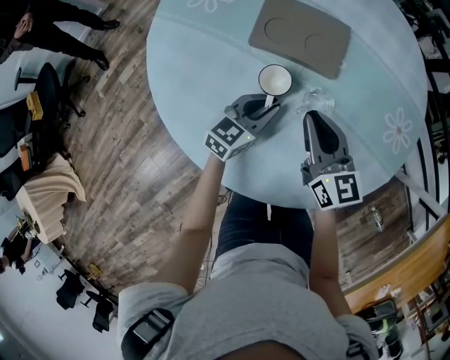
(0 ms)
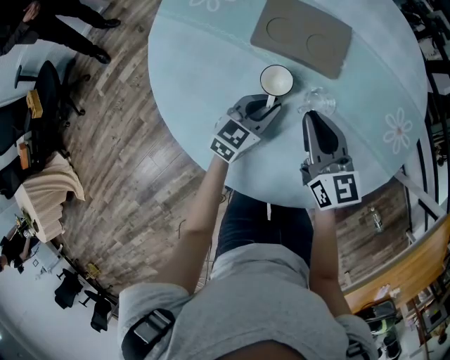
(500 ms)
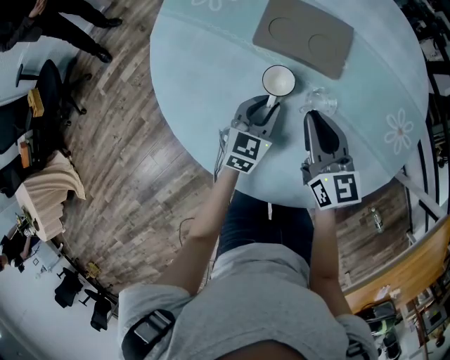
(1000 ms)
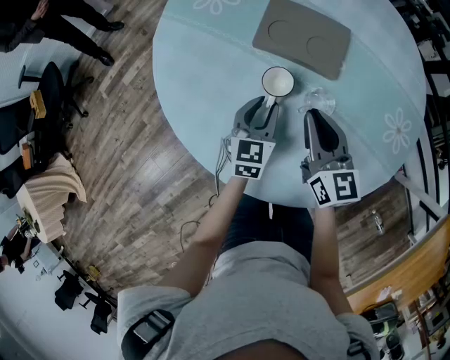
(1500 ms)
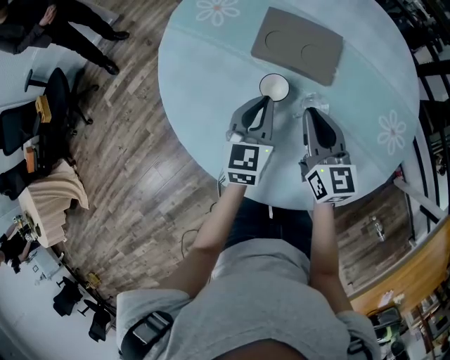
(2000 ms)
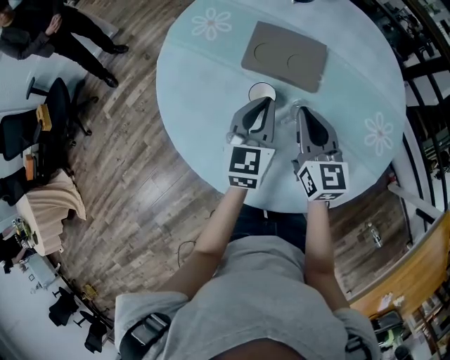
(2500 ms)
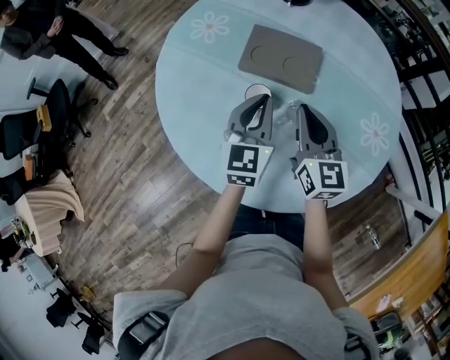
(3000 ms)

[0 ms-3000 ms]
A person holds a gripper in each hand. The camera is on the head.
0 ms to 1500 ms: The left gripper turns by about 30 degrees.
1500 ms to 3000 ms: The right gripper heads upward, covering some 5 cm; the left gripper travels upward by roughly 15 cm, and closes.

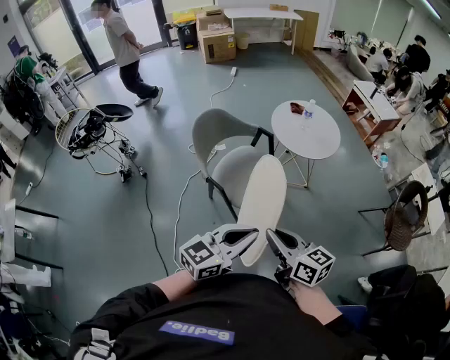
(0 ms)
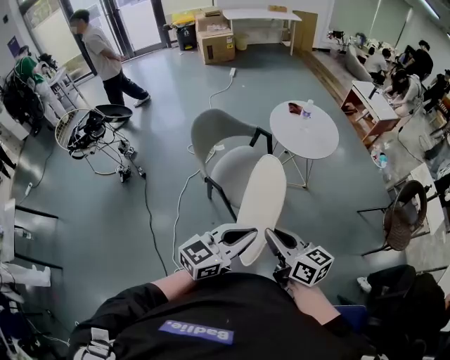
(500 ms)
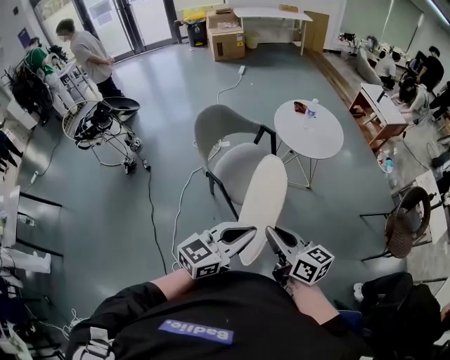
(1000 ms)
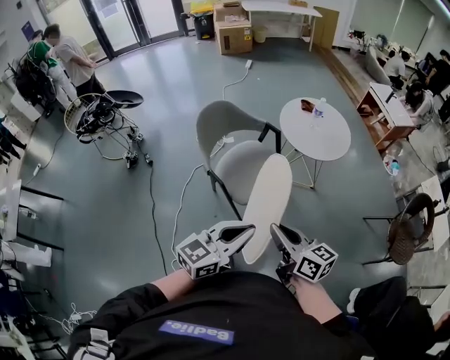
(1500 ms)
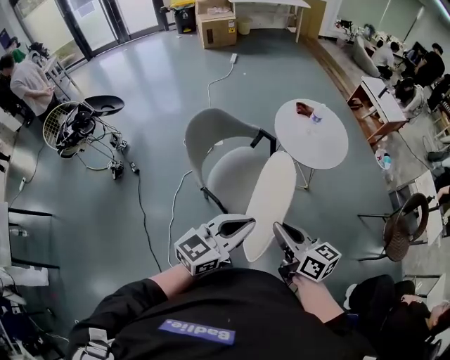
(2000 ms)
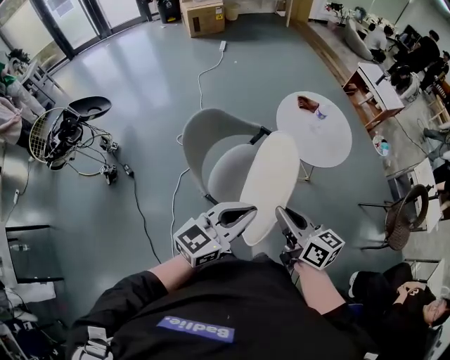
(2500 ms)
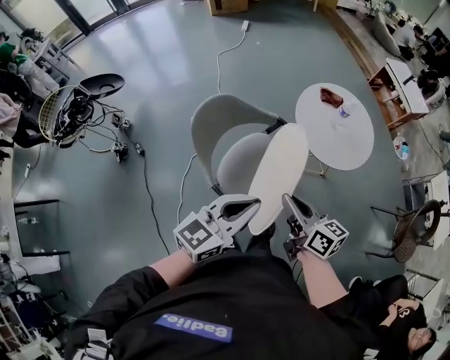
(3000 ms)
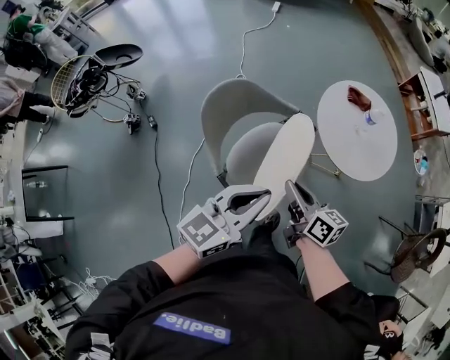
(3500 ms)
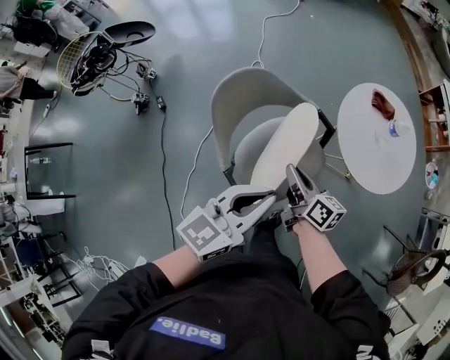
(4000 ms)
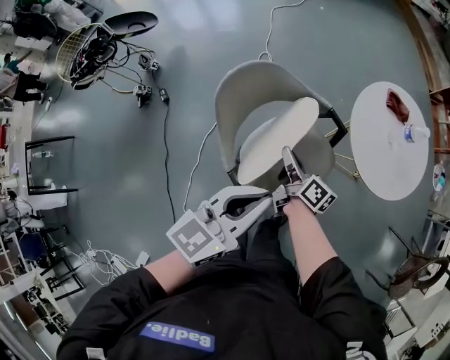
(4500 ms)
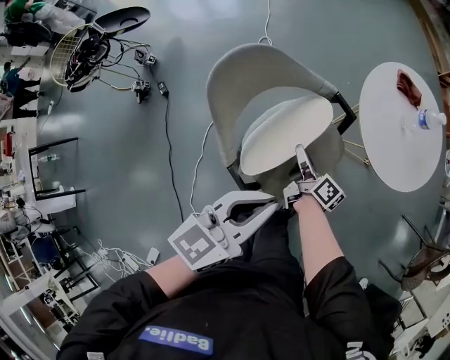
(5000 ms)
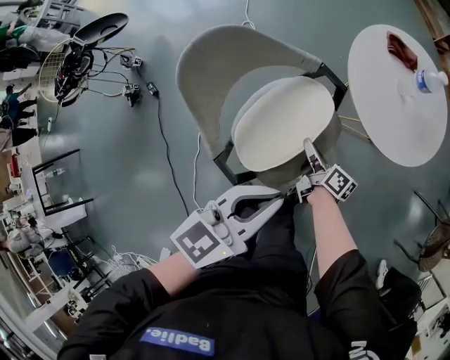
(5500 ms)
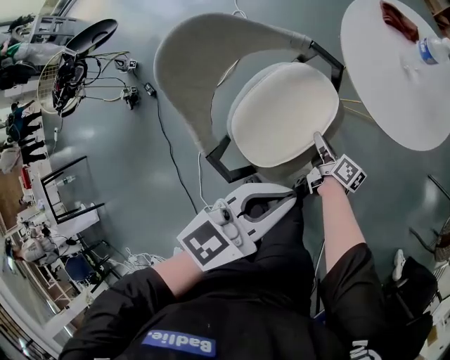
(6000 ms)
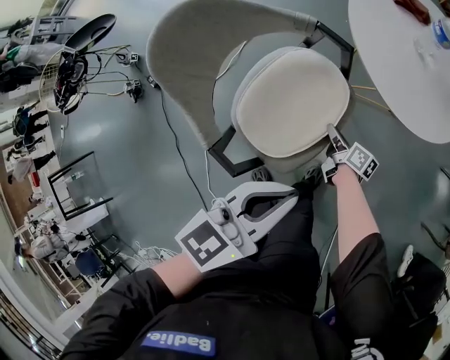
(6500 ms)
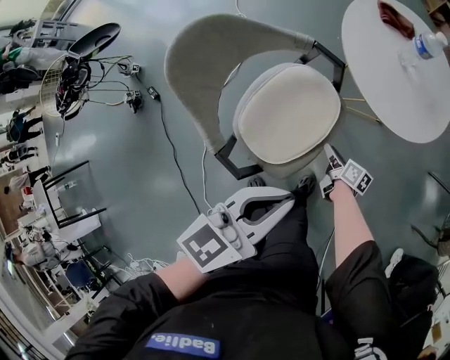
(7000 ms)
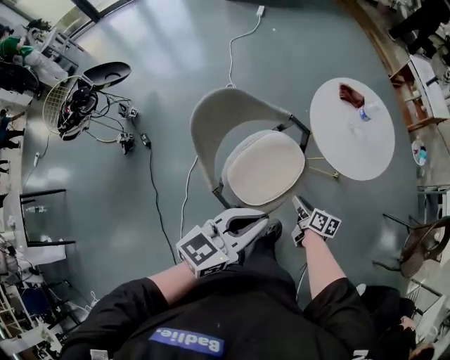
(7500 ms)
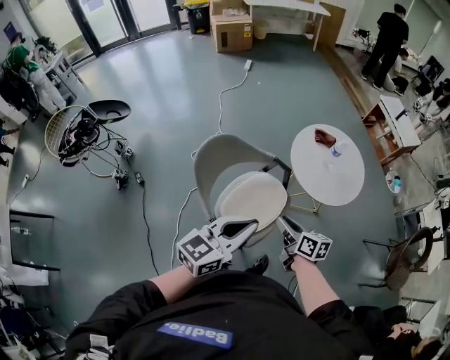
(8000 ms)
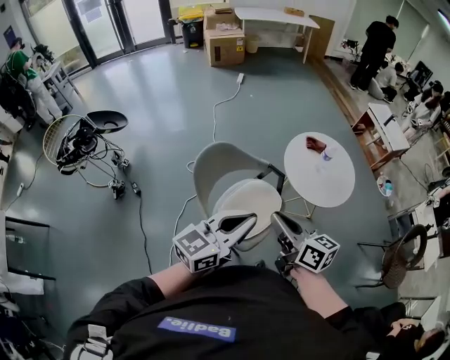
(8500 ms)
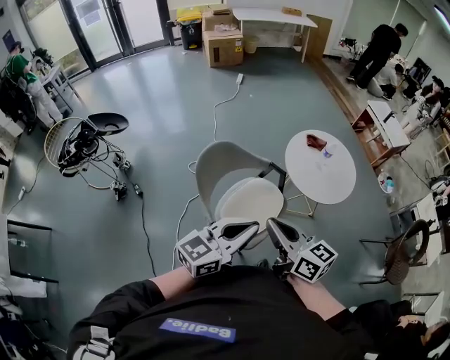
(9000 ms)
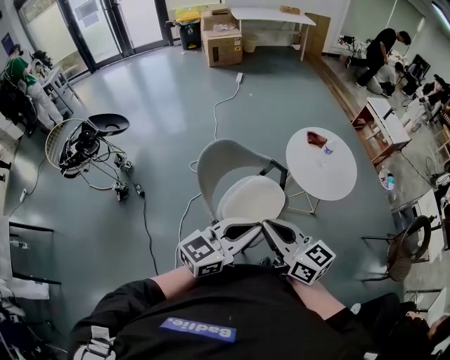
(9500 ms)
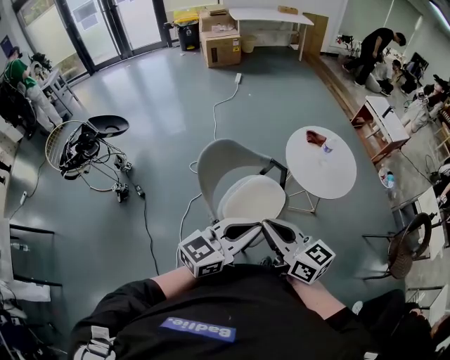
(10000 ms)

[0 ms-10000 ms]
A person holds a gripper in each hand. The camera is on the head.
0 ms to 2000 ms: Both grippers travel together forward, roughly 15 cm.
2000 ms to 4000 ms: The right gripper is displaced forward and downward by roughly 30 cm, while the left gripper goes some 20 cm forward.
4000 ms to 6000 ms: The right gripper shifts about 30 cm downward and to the right, and rotates roughly 30 degrees, while the left gripper heads downward and to the right, covering approximately 15 cm.
6000 ms to 8000 ms: The right gripper goes about 30 cm upward, and changes its angle by about 30 degrees. Meanwhile the left gripper heads upward and to the left, covering approximately 20 cm.
8000 ms to 10000 ms: The right gripper goes some 25 cm upward, backward and to the left, rotates approximately 30 degrees, and closes. The left gripper goes about 5 cm backward.

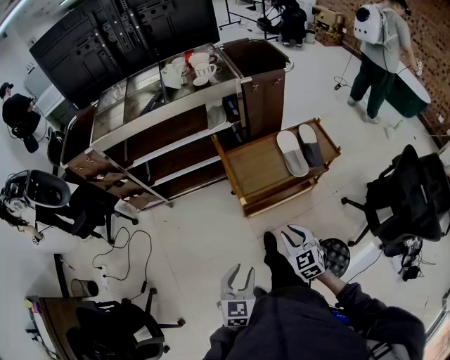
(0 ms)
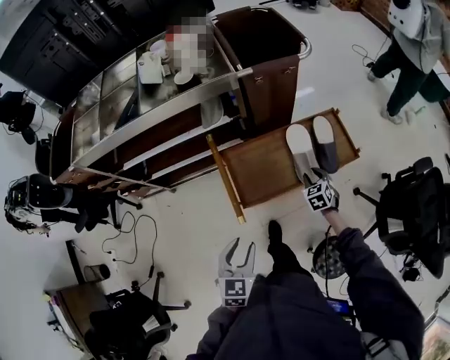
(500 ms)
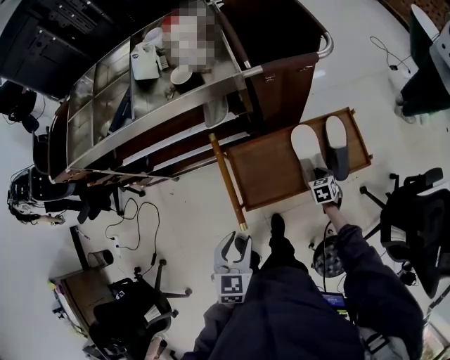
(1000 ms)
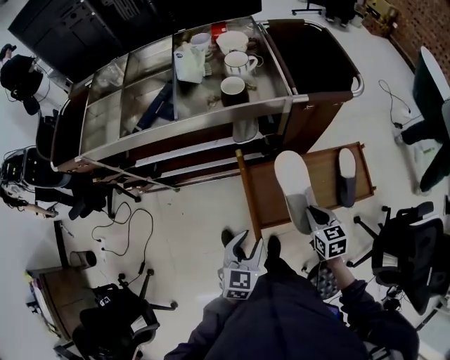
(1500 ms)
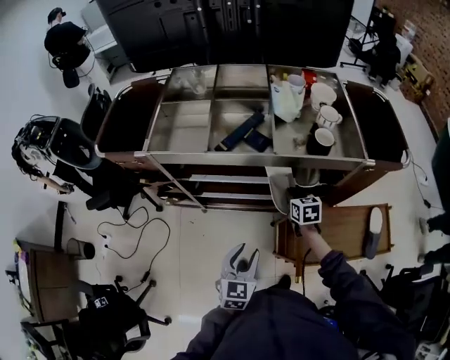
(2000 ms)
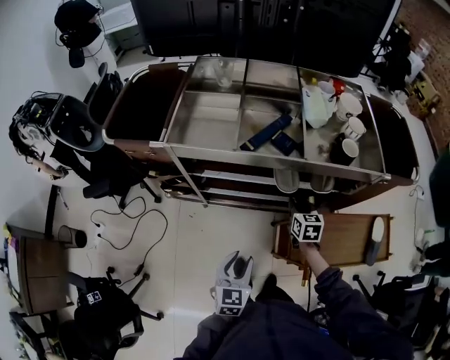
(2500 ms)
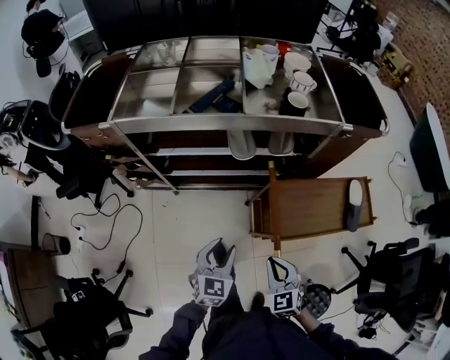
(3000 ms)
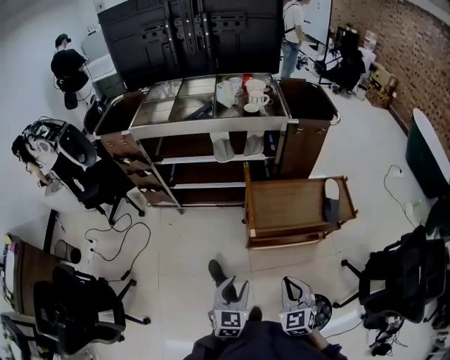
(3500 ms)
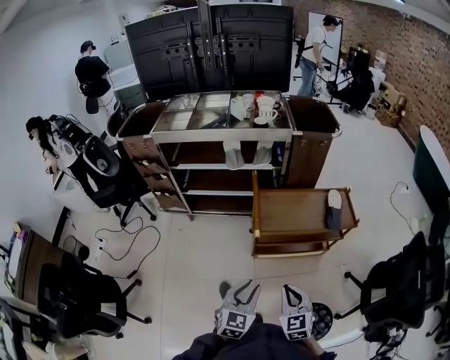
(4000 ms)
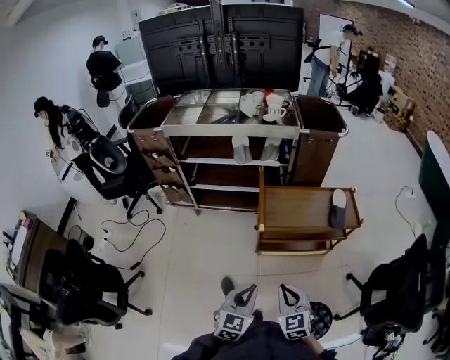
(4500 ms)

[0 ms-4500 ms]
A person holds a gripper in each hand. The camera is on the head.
0 ms to 2000 ms: Both grippers are carried forward and to the left, about 50 cm. The right gripper rotates roughly 20 degrees.
2000 ms to 4500 ms: Both grippers are carried backward, roughly 60 cm. The right gripper changes its angle by roughly 30 degrees, while the left gripper closes up.

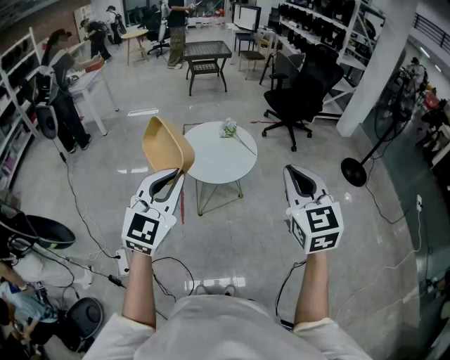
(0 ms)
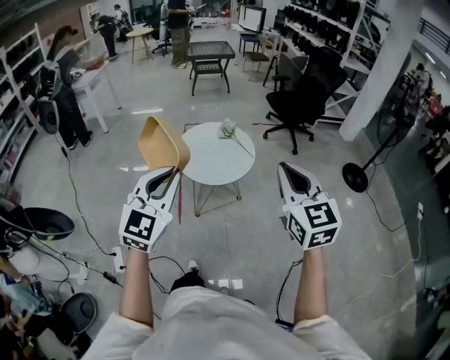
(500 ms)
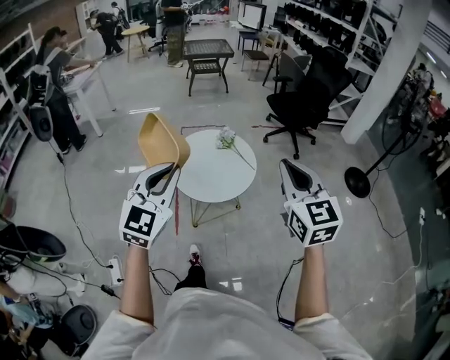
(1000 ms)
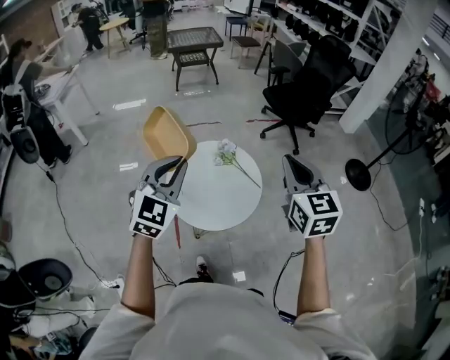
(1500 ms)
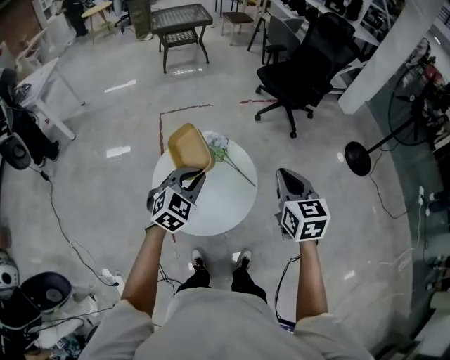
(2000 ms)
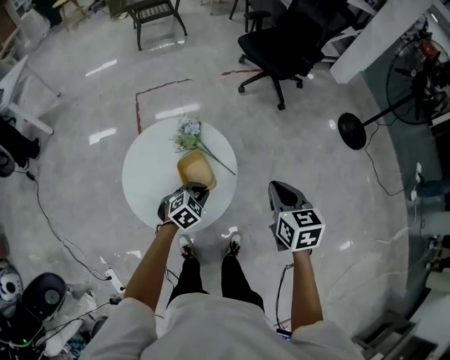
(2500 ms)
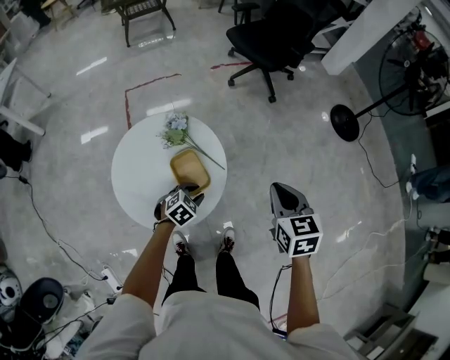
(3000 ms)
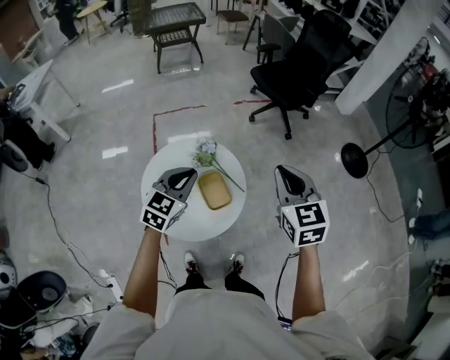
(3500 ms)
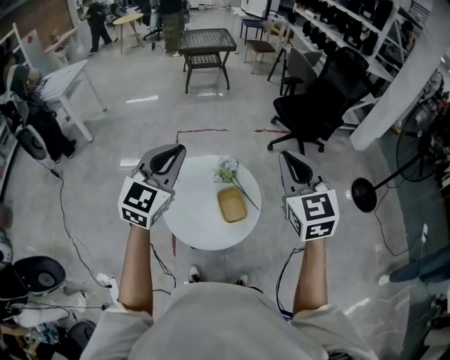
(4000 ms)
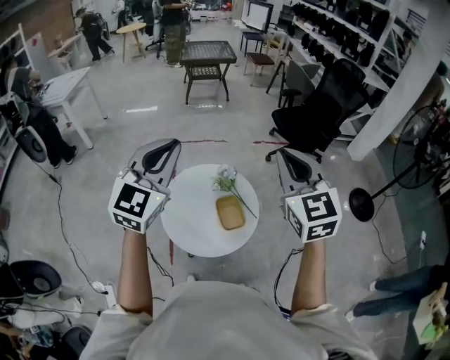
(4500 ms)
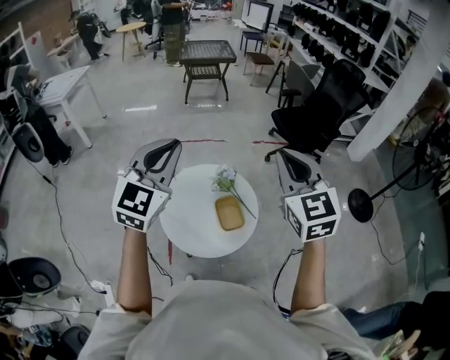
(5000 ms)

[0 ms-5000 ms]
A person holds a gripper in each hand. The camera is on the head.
0 ms to 2500 ms: Both grippers are carried forward, roughly 50 cm. The right gripper travels downward by roughly 30 cm, and changes its angle by roughly 40 degrees; the left gripper travels downward by roughly 50 cm, and tilts its fingers about 50 degrees downward.
2500 ms to 5000 ms: The left gripper shifts approximately 50 cm upward, tips its fingers upward by approximately 50 degrees, and opens, then closes once more; the right gripper travels upward by roughly 30 cm, and swivels about 40 degrees.

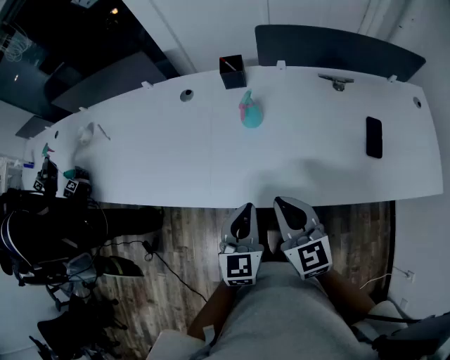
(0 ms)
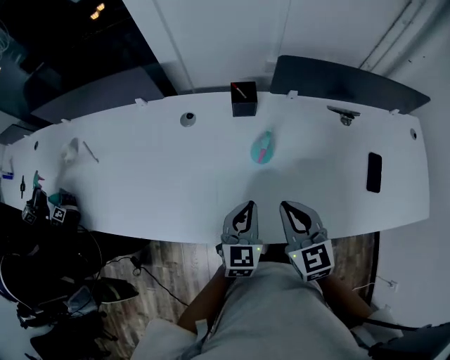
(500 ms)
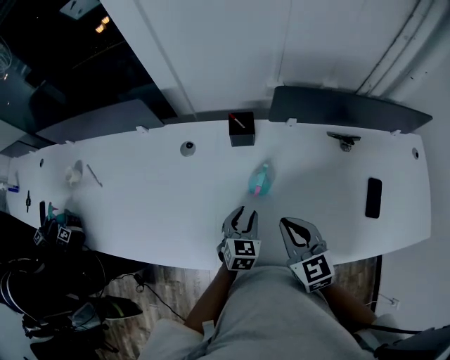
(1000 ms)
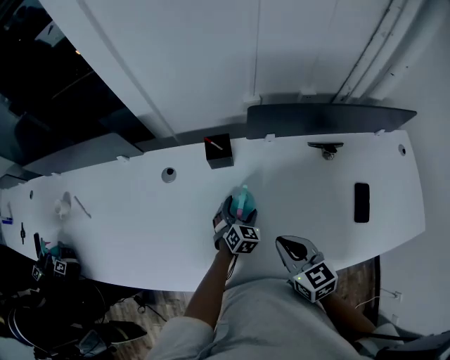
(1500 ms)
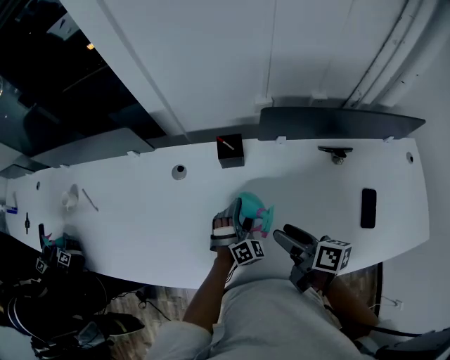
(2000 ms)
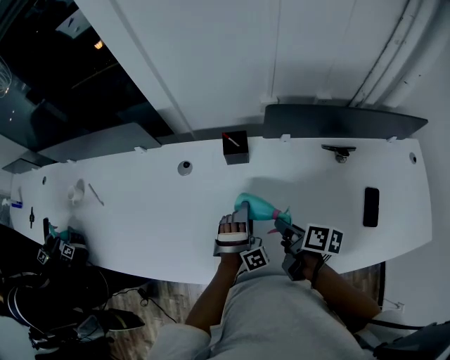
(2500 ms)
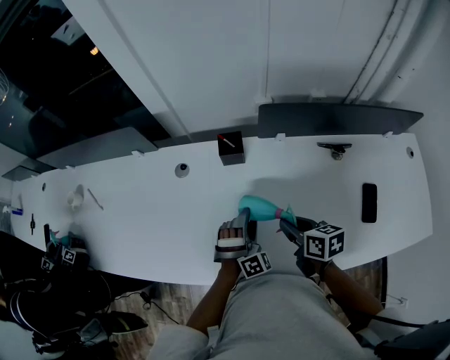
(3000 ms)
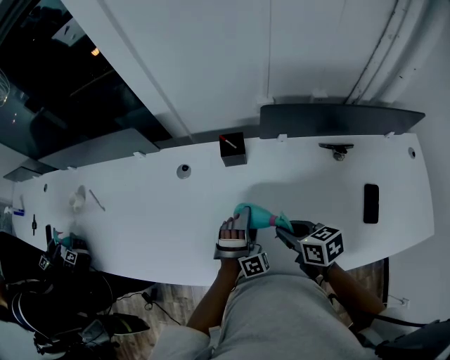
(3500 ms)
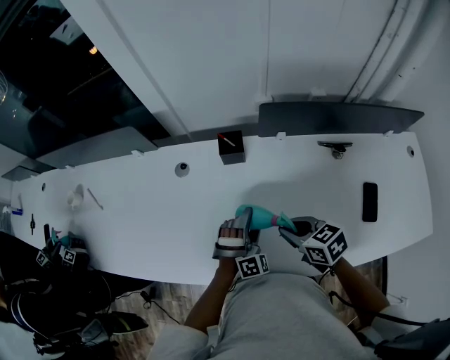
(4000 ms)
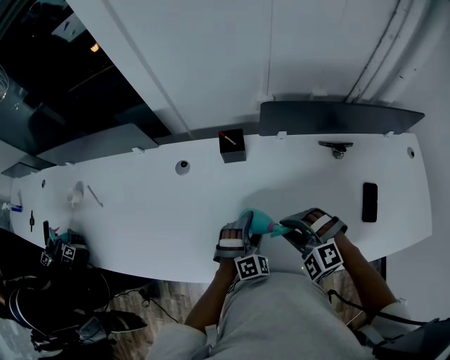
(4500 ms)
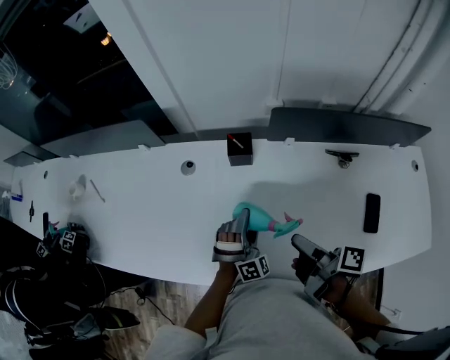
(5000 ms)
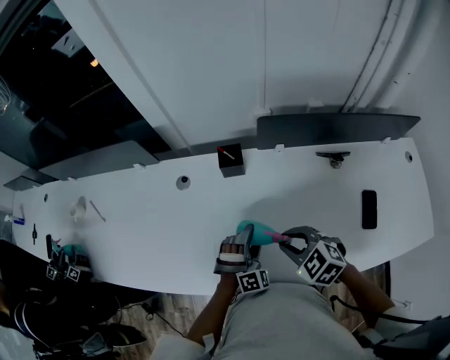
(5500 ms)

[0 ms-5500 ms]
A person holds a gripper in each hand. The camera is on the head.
0 ms to 2000 ms: Both grippers move forward, approximately 25 cm. The left gripper rolls clockwise, seen from behind, by roughly 60 degrees, and opens its fingers. The right gripper twists some 60 degrees clockwise, seen from behind, and opens its fingers.
2000 ms to 3500 ms: The right gripper turns by some 30 degrees, and closes up; the left gripper changes place by roughly 5 cm.
3500 ms to 5500 ms: The right gripper rolls counterclockwise, seen from behind, by about 50 degrees, and opens, then closes once more.
